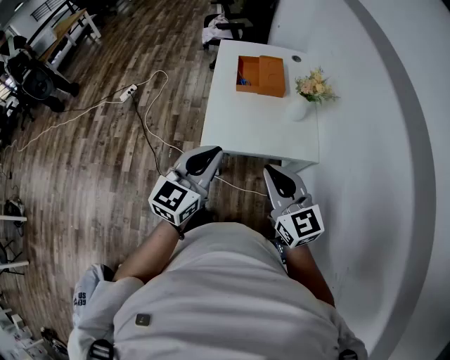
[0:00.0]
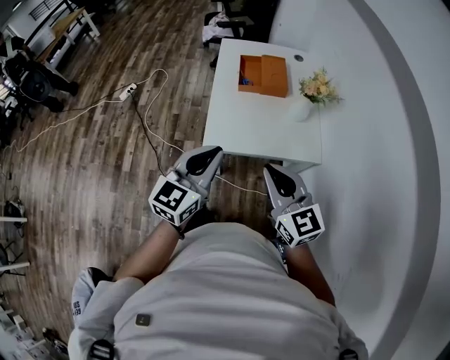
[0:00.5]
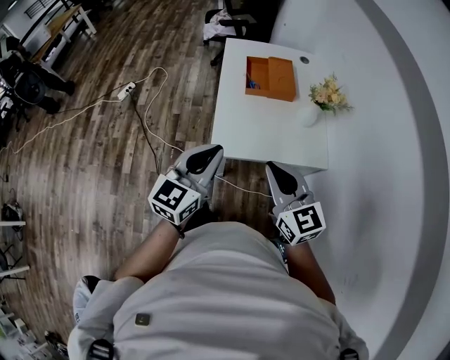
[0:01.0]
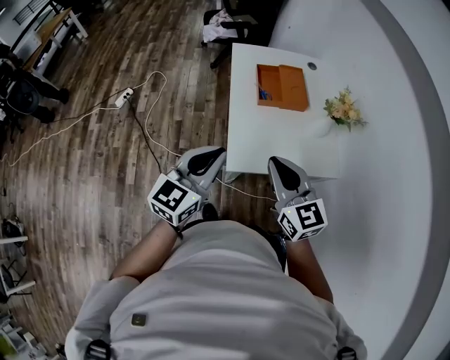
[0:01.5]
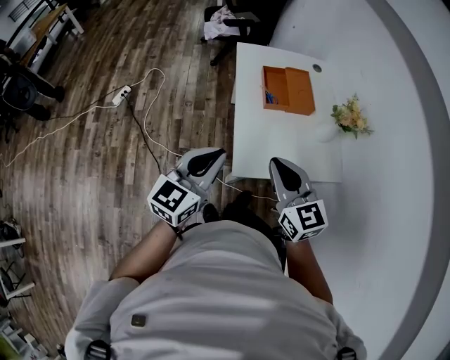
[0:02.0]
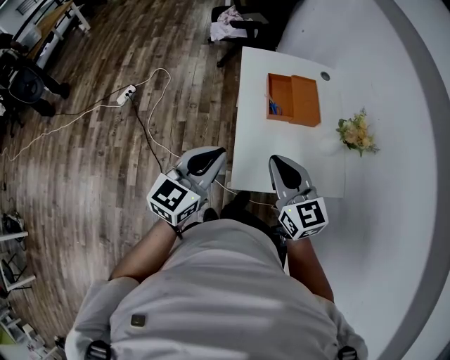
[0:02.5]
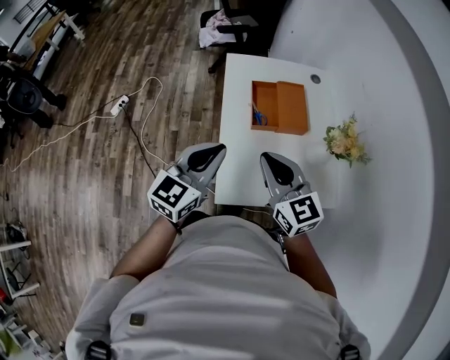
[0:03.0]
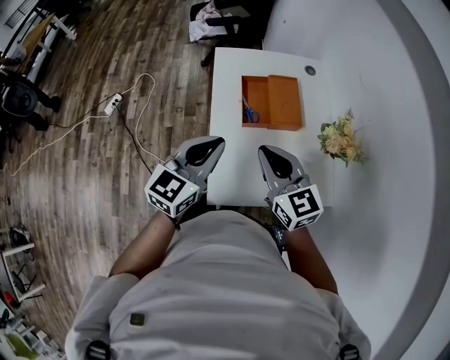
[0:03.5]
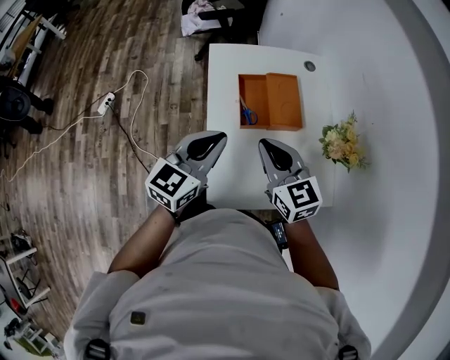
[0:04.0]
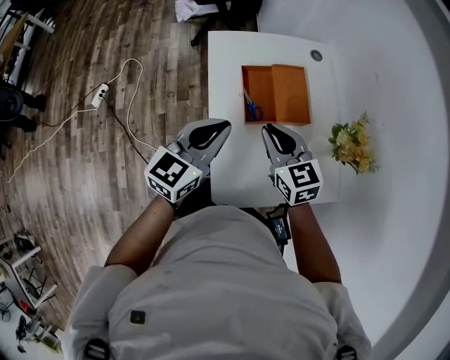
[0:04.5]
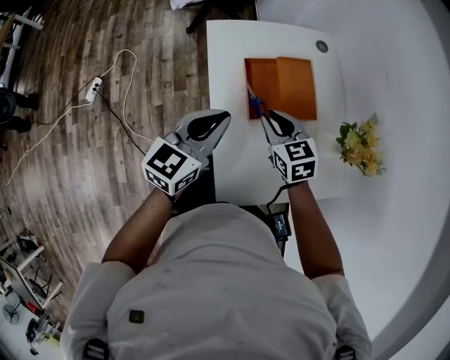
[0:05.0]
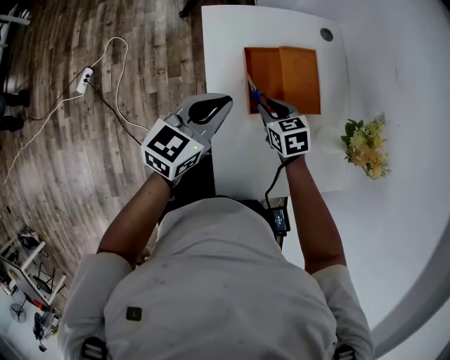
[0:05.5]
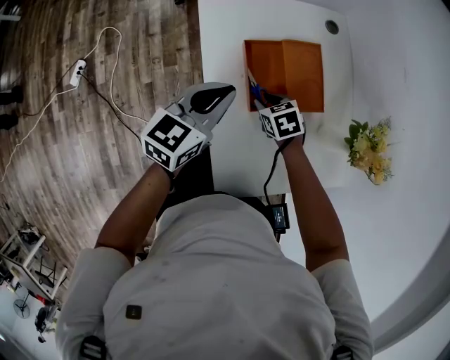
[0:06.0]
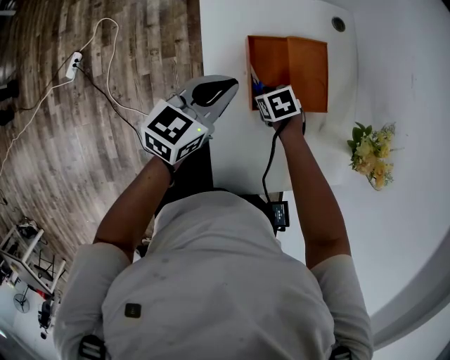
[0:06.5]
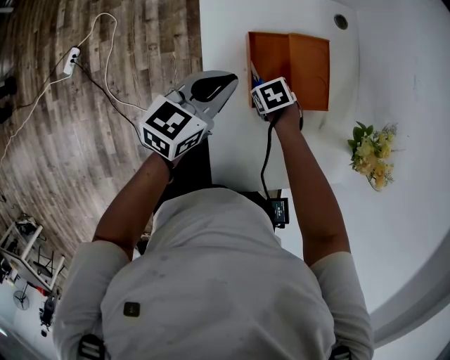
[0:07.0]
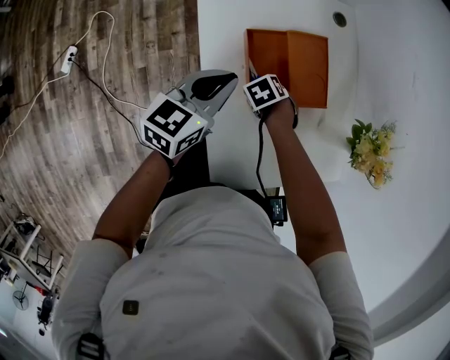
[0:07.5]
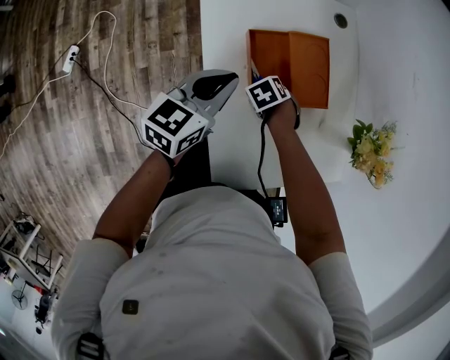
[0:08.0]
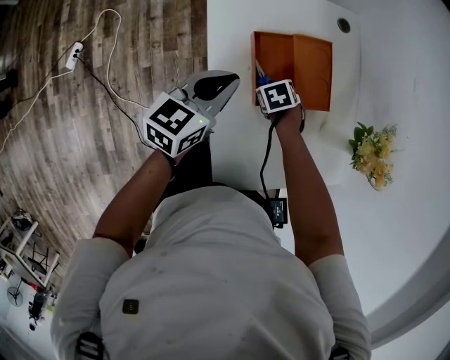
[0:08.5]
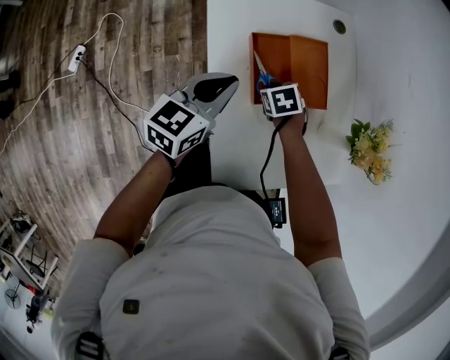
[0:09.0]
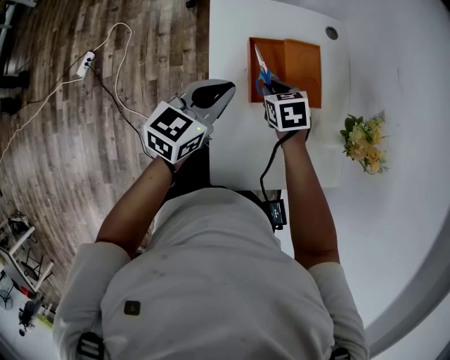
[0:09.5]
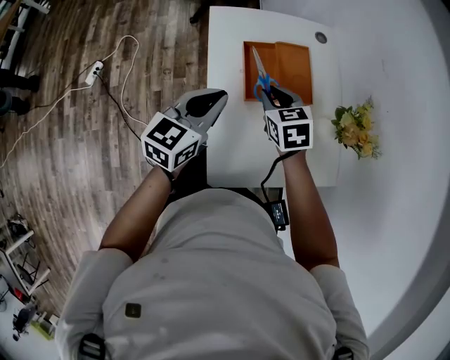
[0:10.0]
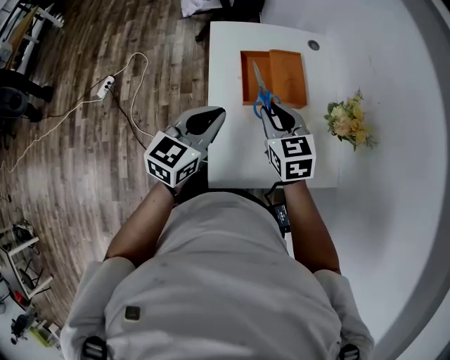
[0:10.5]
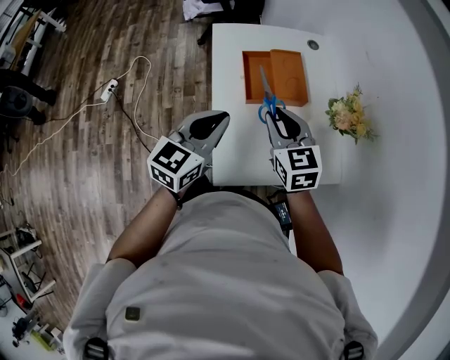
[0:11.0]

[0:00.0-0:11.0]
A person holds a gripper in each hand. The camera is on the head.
0:00.0 to 0:02.0: Both grippers move to the left and forward, approximately 25 cm.
0:02.0 to 0:03.5: Both grippers move forward and to the right, about 20 cm.
0:03.5 to 0:05.5: The right gripper moves downward and forward, about 30 cm, points its fingers approximately 40 degrees further downward, and opens its fingers. The left gripper moves forward and downward, roughly 20 cm.
0:05.5 to 0:07.5: The right gripper goes about 15 cm downward, and tilts its fingers roughly 40 degrees downward. The left gripper goes some 5 cm downward.
0:07.5 to 0:09.0: The right gripper shifts roughly 5 cm upward.
0:09.0 to 0:11.0: The right gripper is displaced upward by some 30 cm, and tips its fingers upward by about 50 degrees, while the left gripper changes place by about 25 cm.

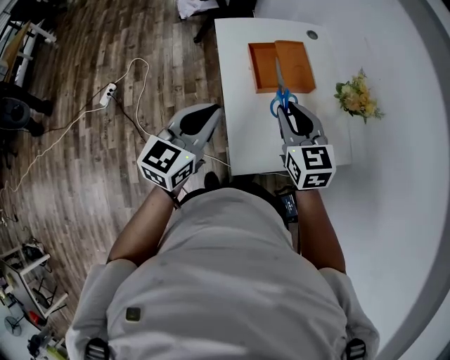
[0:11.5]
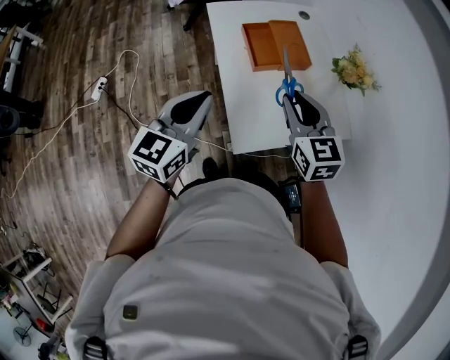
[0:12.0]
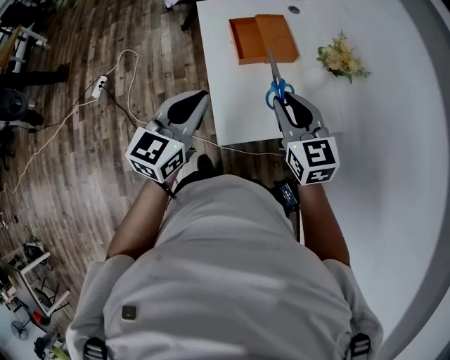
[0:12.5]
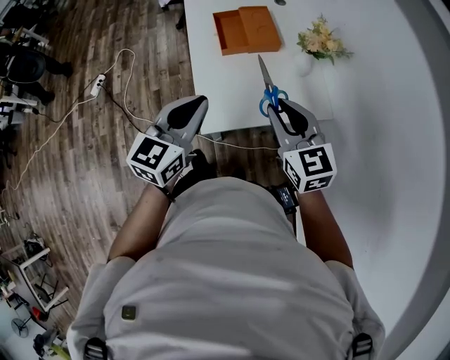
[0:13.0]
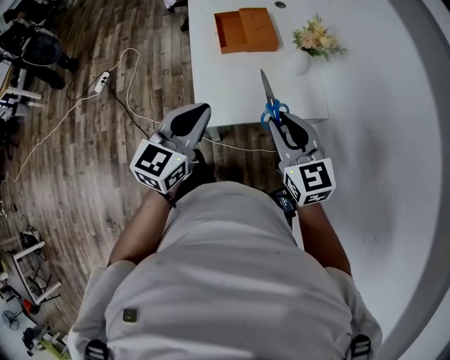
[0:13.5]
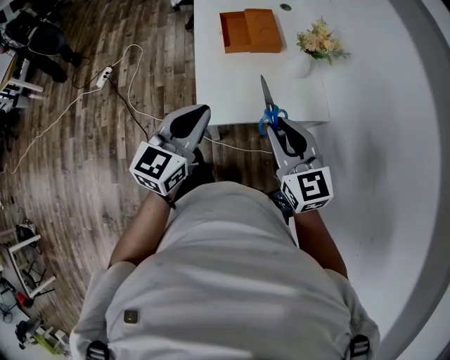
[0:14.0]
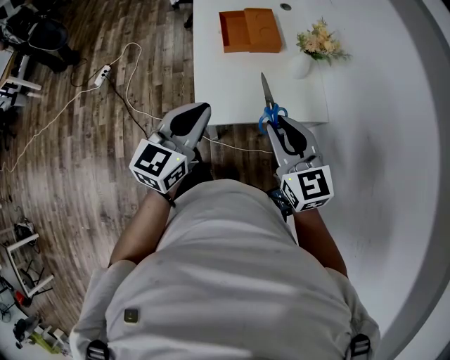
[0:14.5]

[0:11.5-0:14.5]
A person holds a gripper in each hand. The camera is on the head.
0:11.5 to 0:13.0: The left gripper heads to the right and backward, covering about 20 cm. The right gripper shifts roughly 20 cm backward and to the right.
0:13.0 to 0:14.5: Both grippers travel together backward, about 5 cm.

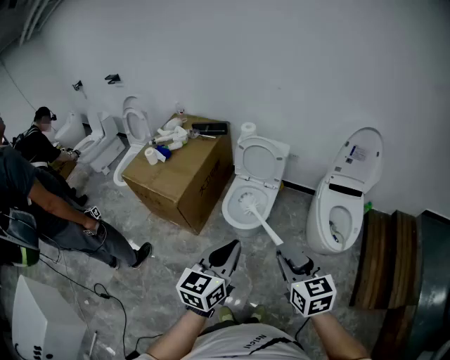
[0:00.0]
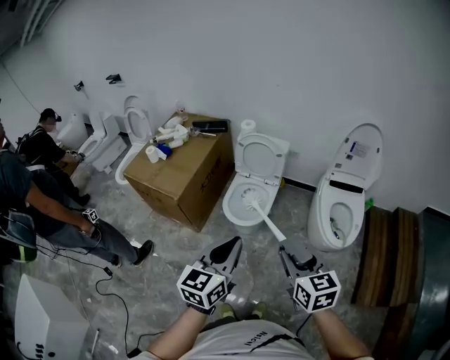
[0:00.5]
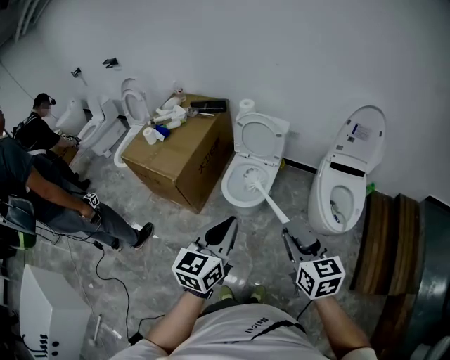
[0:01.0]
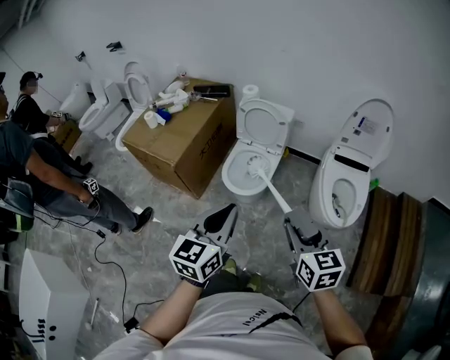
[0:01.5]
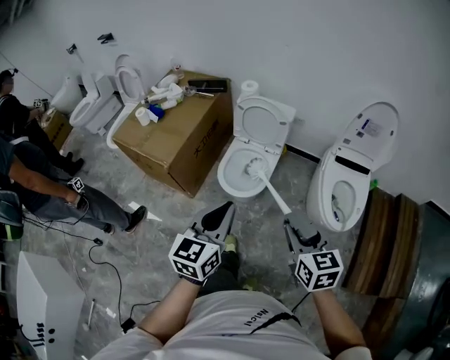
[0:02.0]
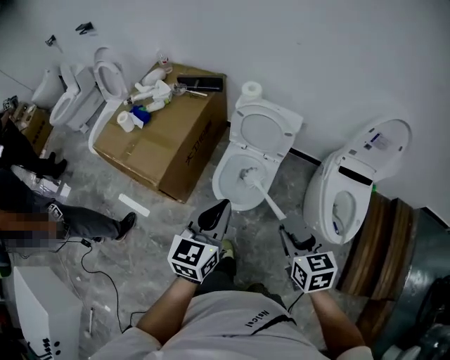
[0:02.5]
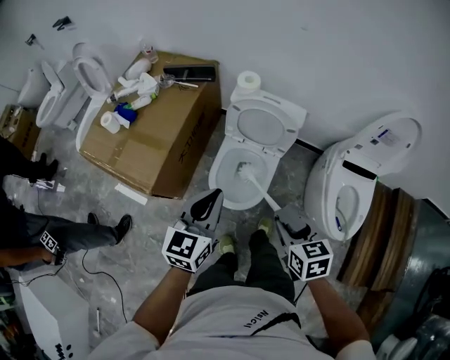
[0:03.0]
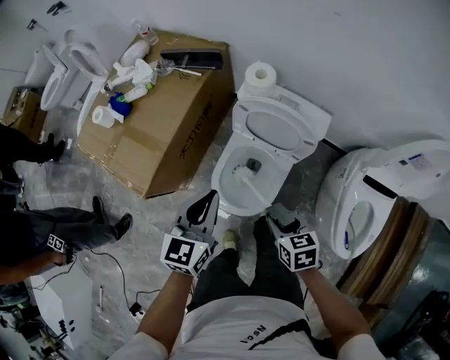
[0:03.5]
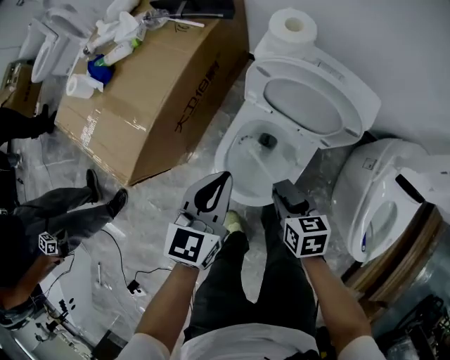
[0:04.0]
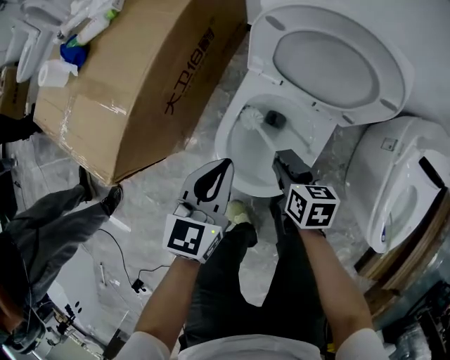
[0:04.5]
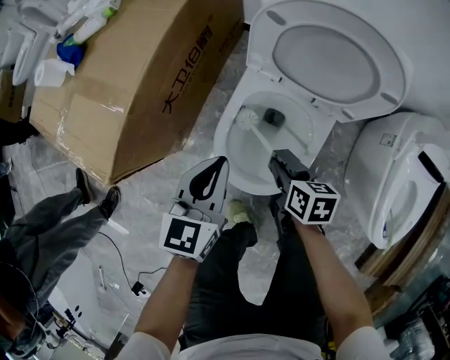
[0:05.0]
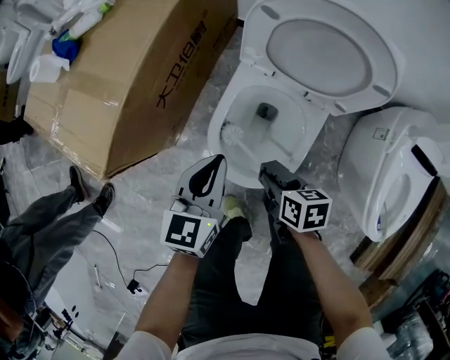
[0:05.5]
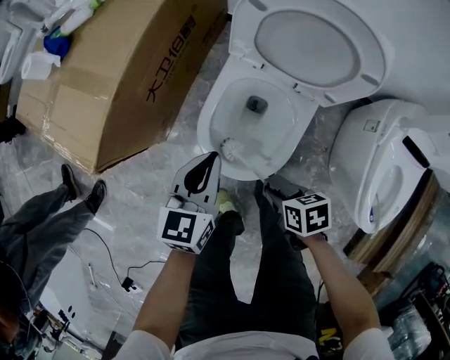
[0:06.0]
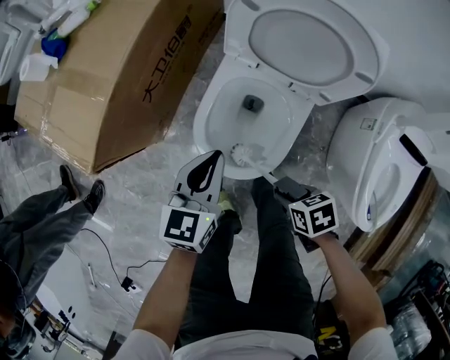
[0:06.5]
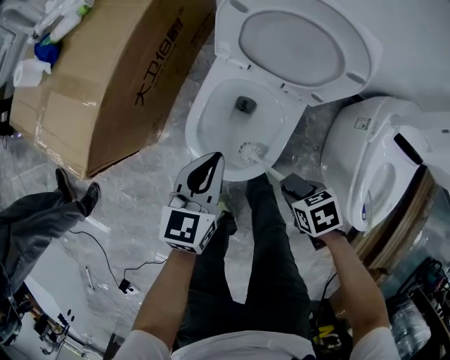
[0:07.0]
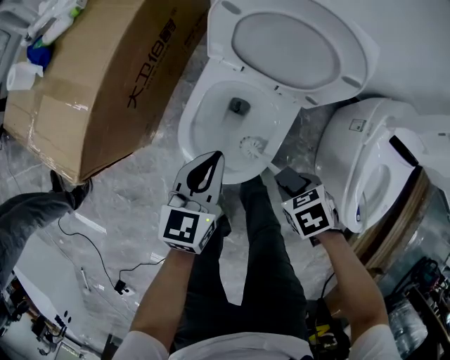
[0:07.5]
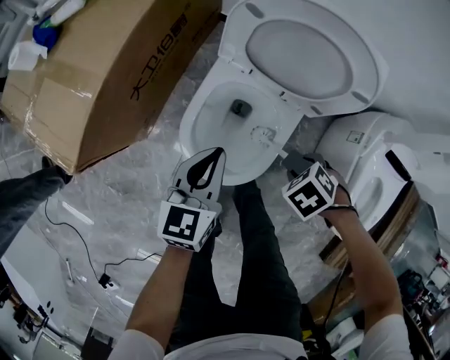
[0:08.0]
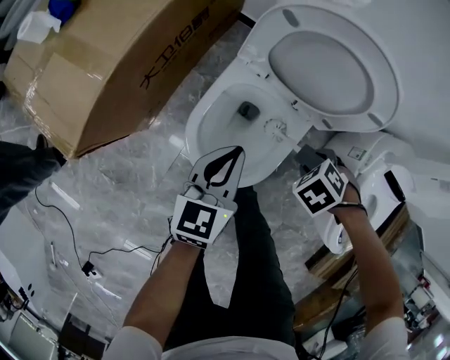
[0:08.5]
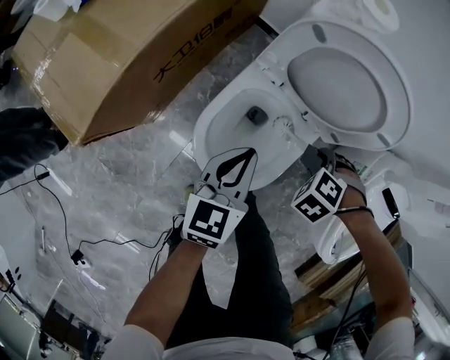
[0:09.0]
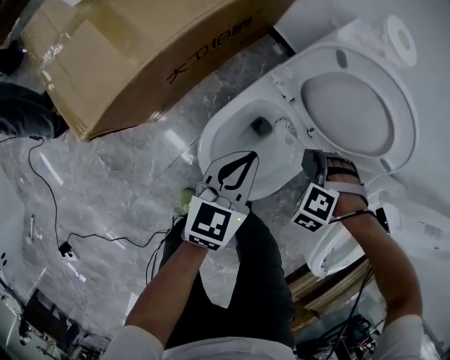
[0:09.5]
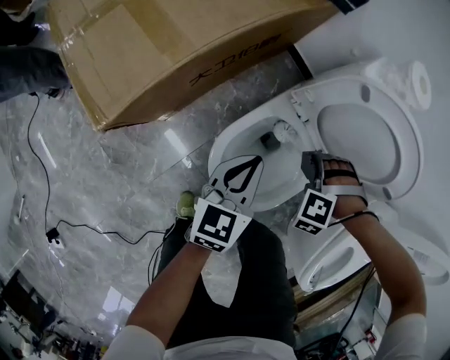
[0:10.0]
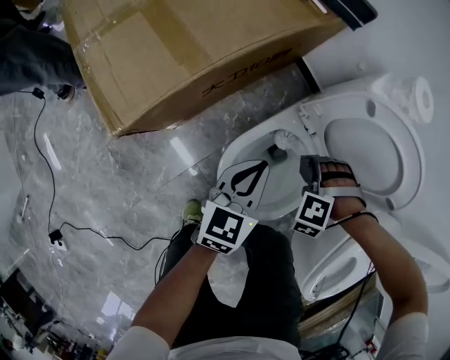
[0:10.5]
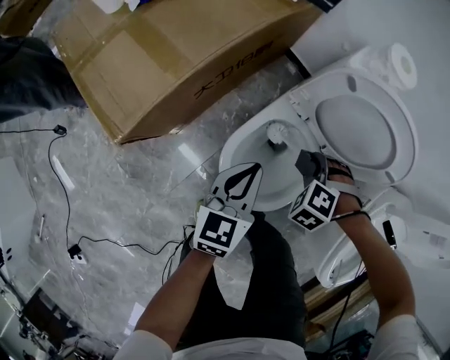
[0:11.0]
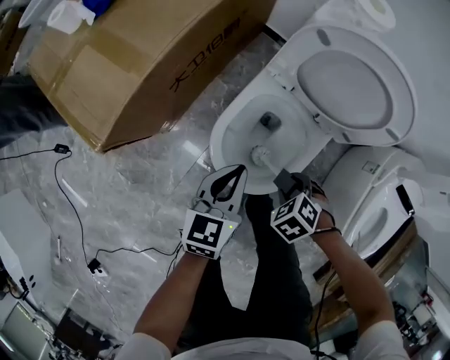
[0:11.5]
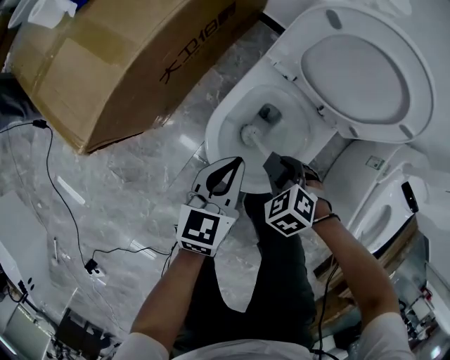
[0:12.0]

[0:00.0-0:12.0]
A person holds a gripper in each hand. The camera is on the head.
0:00.0 to 0:02.0: The left gripper travels forward by approximately 10 cm; the right gripper goes some 10 cm forward, to the right and downward.
0:02.0 to 0:04.0: The two grippers travel together, forward, some 40 cm. Both grippers travel together downward, approximately 35 cm. The right gripper turns by approximately 30 degrees.
0:04.0 to 0:06.0: Both grippers travel together downward and backward, about 15 cm. The right gripper rotates about 20 degrees.
0:06.0 to 0:08.0: The left gripper changes place by some 5 cm; the right gripper changes place by roughly 15 cm, and rotates around the line of its fingers by about 40 degrees, counterclockwise from behind.
0:08.0 to 0:10.0: The left gripper changes place by approximately 5 cm; the right gripper ends up approximately 15 cm from where it was, and rolls counterclockwise, seen from behind, by approximately 70 degrees.
0:10.0 to 0:12.0: The right gripper ends up some 15 cm from where it was, and twists approximately 50 degrees clockwise, seen from behind. The left gripper moves about 5 cm.
